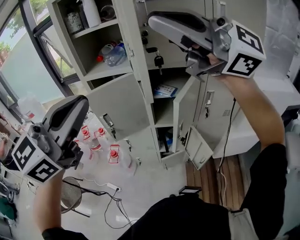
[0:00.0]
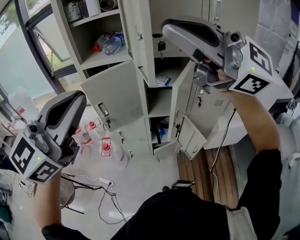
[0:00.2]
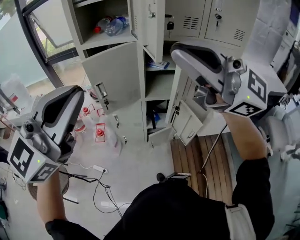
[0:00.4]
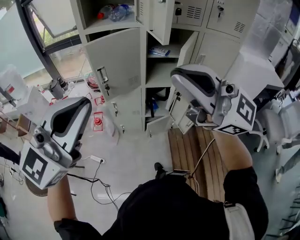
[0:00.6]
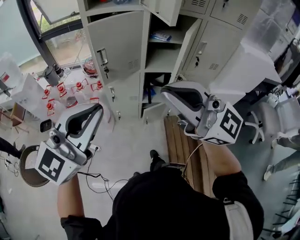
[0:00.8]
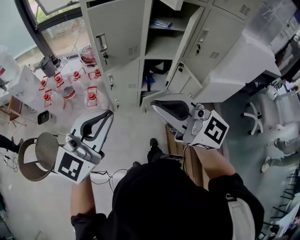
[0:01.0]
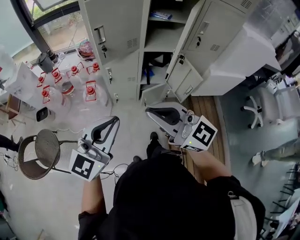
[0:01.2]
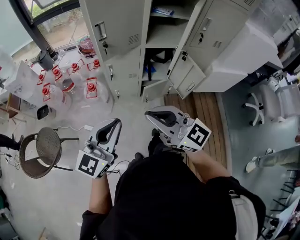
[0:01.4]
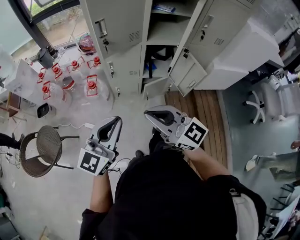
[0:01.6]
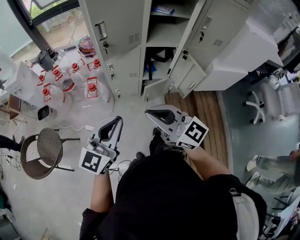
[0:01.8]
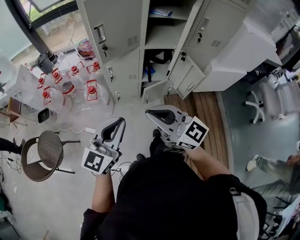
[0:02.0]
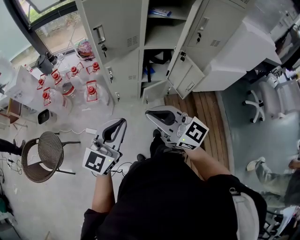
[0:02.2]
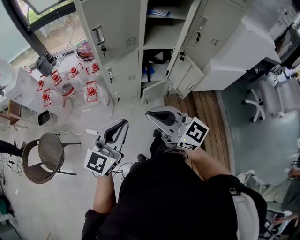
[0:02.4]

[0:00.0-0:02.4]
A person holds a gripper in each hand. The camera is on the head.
0.0 to 1.2 s: The left gripper heads downward and backward, covering approximately 35 cm. The right gripper is displaced downward, to the left and backward by some 50 cm, and rotates about 40 degrees.
1.2 to 2.4 s: Both grippers travel together downward, about 5 cm.

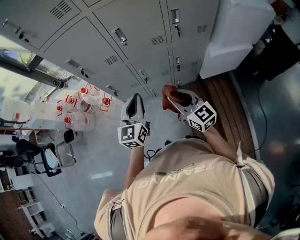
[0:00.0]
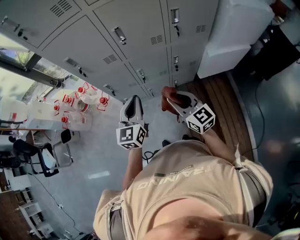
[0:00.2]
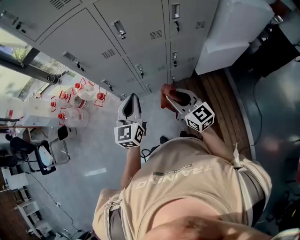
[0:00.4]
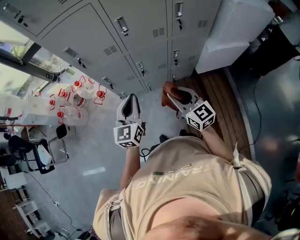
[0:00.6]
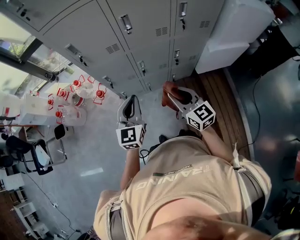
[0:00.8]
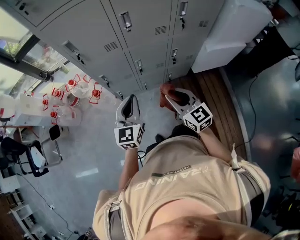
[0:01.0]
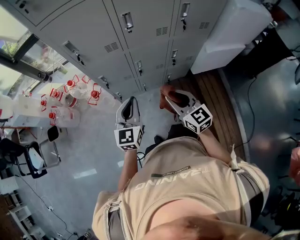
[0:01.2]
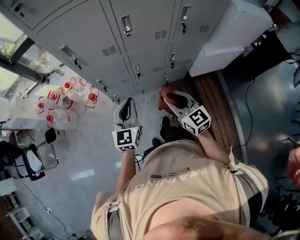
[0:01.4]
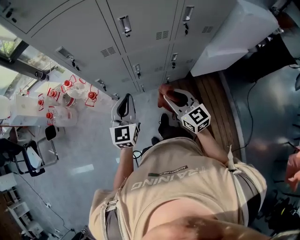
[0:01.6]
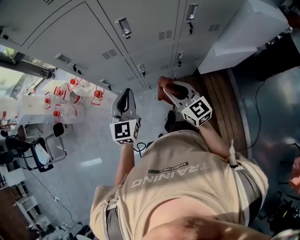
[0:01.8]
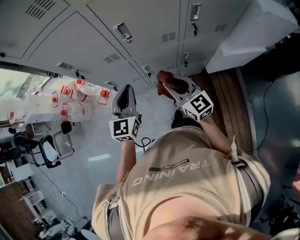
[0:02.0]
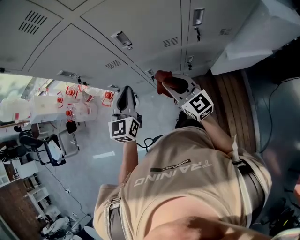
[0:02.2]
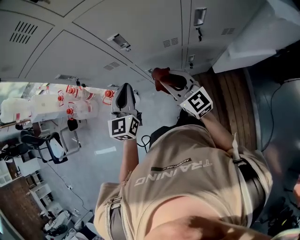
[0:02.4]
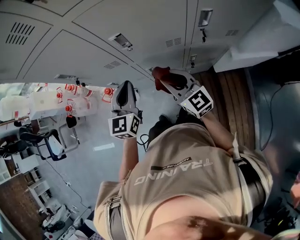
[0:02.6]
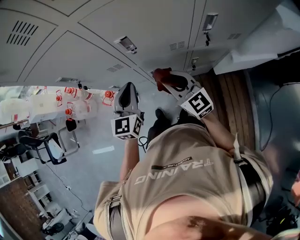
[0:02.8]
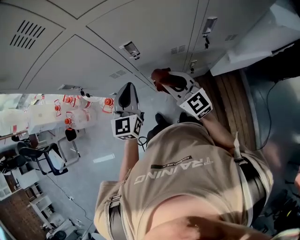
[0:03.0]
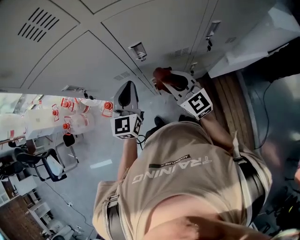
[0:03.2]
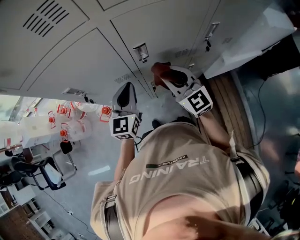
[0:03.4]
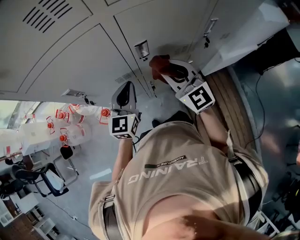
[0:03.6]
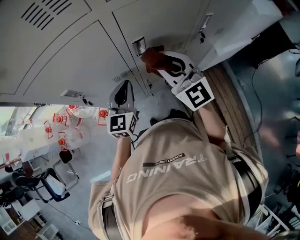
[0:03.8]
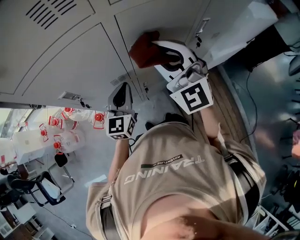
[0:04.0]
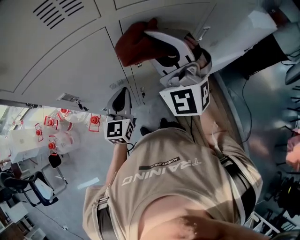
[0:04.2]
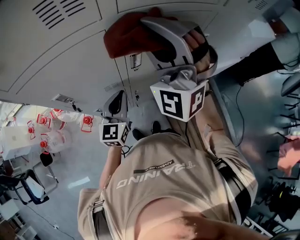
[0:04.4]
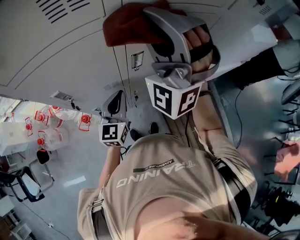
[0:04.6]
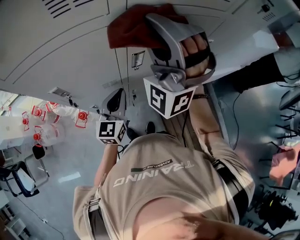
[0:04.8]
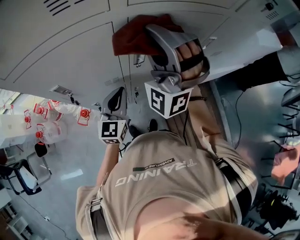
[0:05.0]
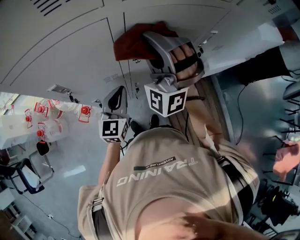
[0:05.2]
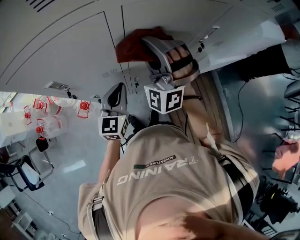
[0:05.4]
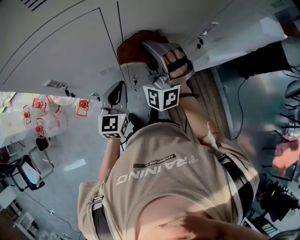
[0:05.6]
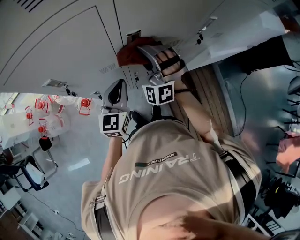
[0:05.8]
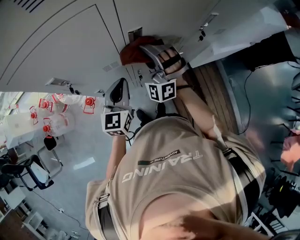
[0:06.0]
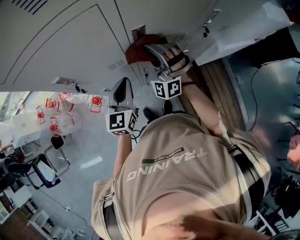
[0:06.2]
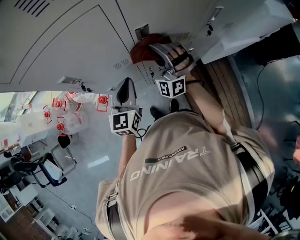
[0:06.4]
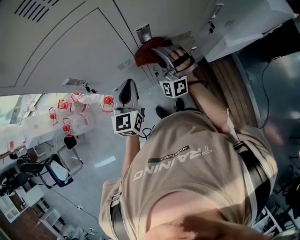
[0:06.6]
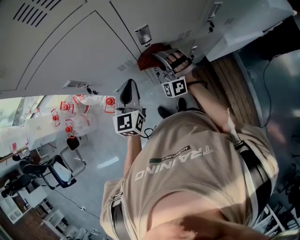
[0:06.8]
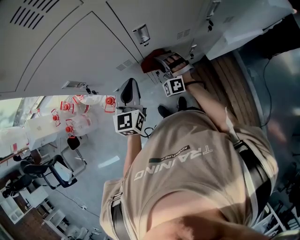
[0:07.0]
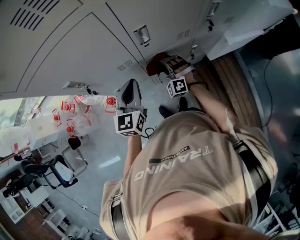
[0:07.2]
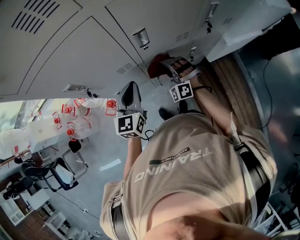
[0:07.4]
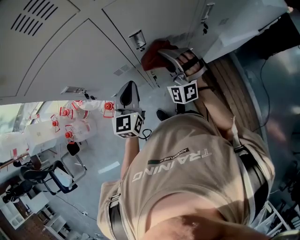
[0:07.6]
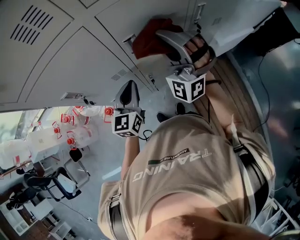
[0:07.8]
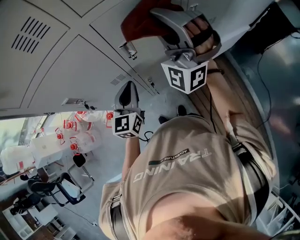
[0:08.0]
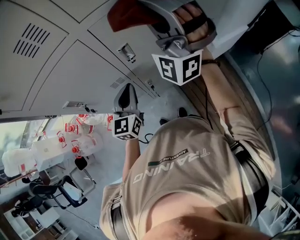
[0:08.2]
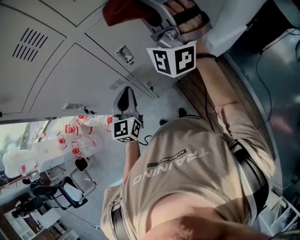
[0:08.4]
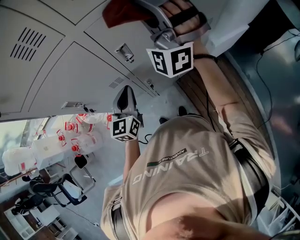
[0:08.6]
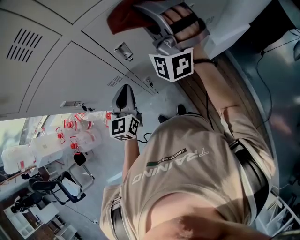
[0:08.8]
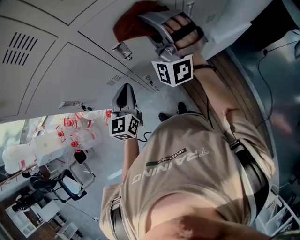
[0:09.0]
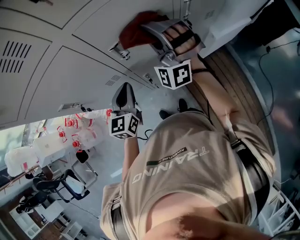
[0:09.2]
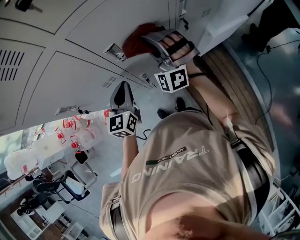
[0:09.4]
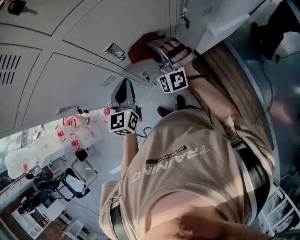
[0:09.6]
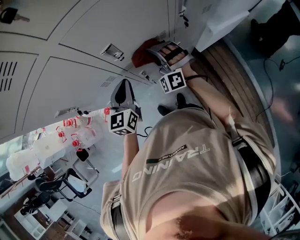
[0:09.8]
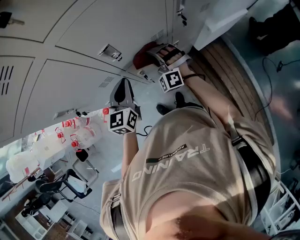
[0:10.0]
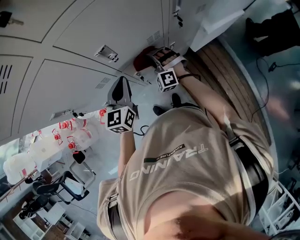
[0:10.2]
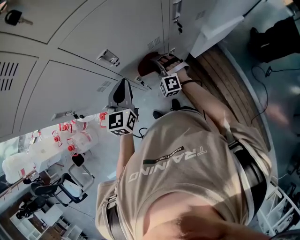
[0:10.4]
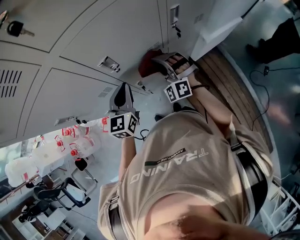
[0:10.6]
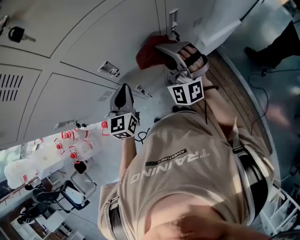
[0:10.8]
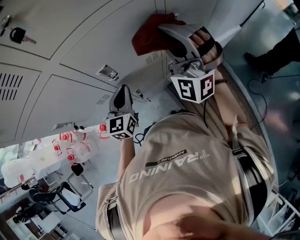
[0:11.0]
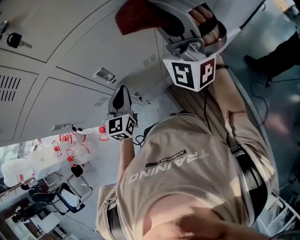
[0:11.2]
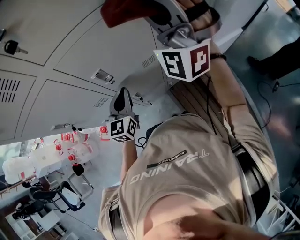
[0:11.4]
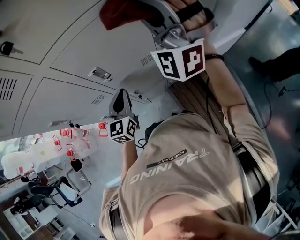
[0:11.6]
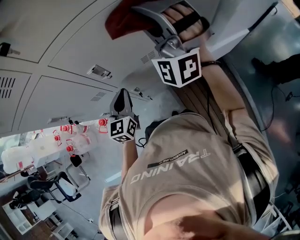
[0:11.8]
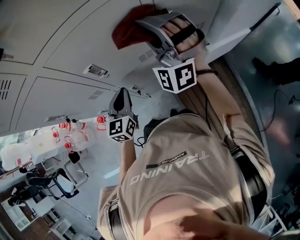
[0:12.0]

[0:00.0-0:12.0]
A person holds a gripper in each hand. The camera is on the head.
0.0 to 1.6 s: The right gripper moves approximately 5 cm; the left gripper is displaced to the left by approximately 5 cm.
1.6 to 3.0 s: Both grippers travel together forward, roughly 20 cm.
3.0 to 4.4 s: The right gripper heads upward, covering approximately 30 cm, and twists about 70 degrees counterclockwise, seen from behind.
4.4 to 6.0 s: The right gripper heads downward, covering some 25 cm.
6.0 to 7.6 s: The right gripper reaches approximately 20 cm downward, then returns.
7.6 to 9.0 s: The right gripper is displaced upward by about 15 cm.
9.0 to 10.4 s: The right gripper moves downward, about 35 cm, and angles its fingers downward, by roughly 40 degrees; the left gripper shifts by some 5 cm.
10.4 to 12.0 s: The right gripper travels upward by some 30 cm, and tilts its fingers approximately 40 degrees upward.

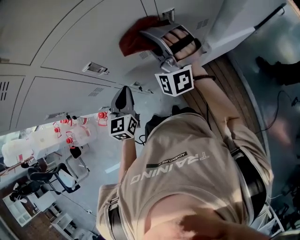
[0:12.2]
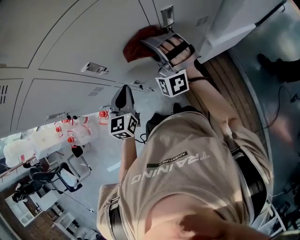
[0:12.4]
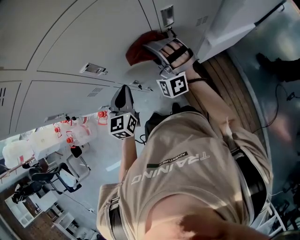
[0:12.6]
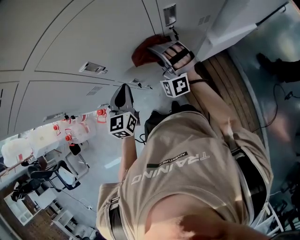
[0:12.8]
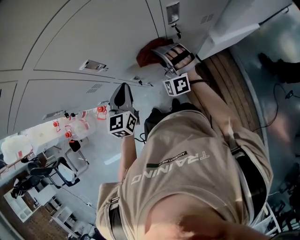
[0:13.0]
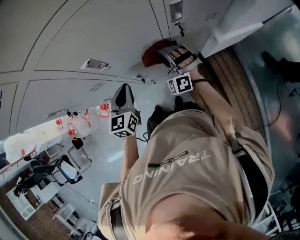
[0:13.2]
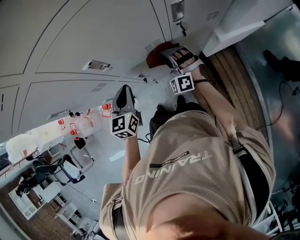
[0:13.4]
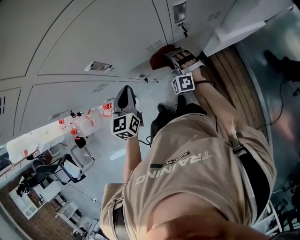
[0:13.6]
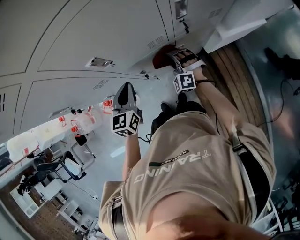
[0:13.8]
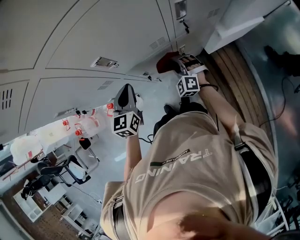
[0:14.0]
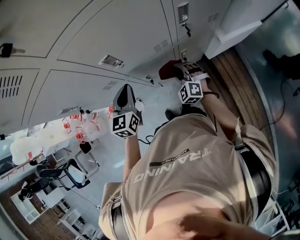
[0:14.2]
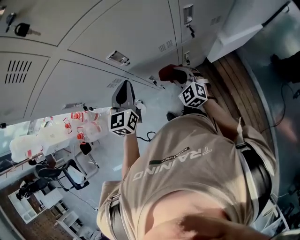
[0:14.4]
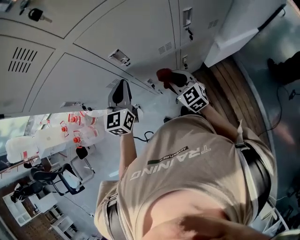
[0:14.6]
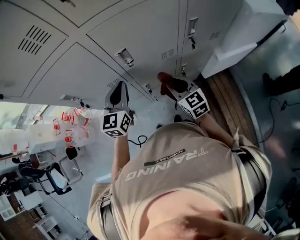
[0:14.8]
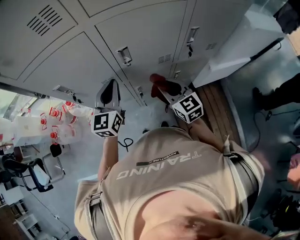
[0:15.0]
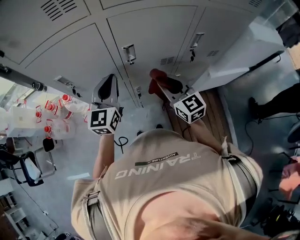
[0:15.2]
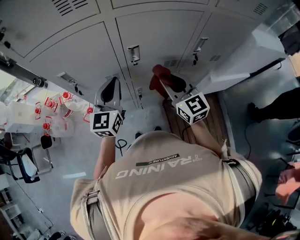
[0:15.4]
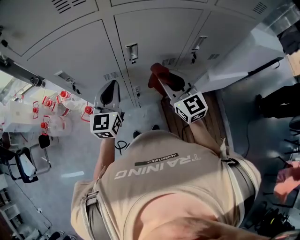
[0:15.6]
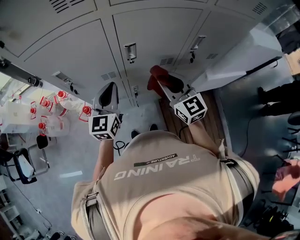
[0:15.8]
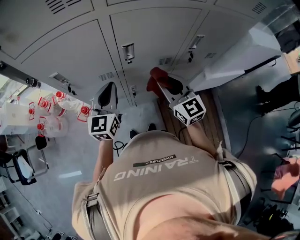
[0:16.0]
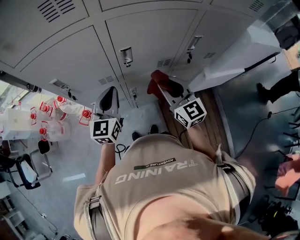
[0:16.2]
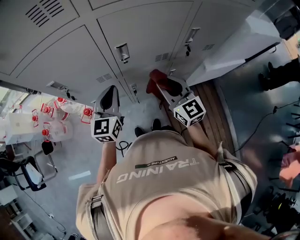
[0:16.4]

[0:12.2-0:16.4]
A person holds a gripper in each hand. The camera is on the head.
12.2 to 13.6 s: The right gripper goes roughly 30 cm downward, and changes its angle by about 30 degrees.
13.6 to 15.0 s: The right gripper is displaced upward and backward by roughly 20 cm, and rolls clockwise, seen from behind, by some 60 degrees. Meanwhile the left gripper shifts roughly 15 cm upward and to the left.
15.0 to 16.4 s: The right gripper is displaced upward by approximately 5 cm.

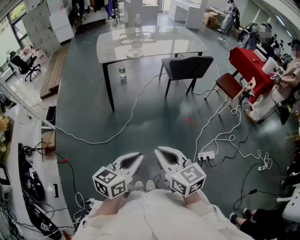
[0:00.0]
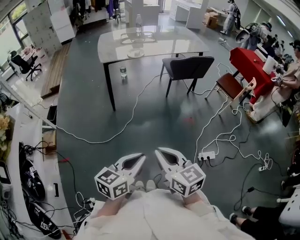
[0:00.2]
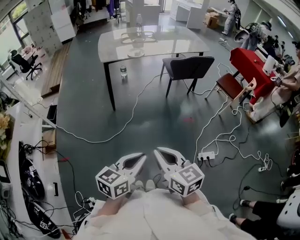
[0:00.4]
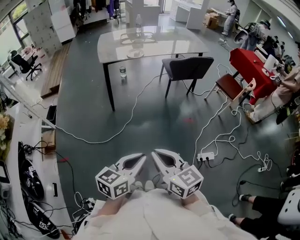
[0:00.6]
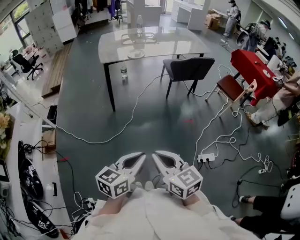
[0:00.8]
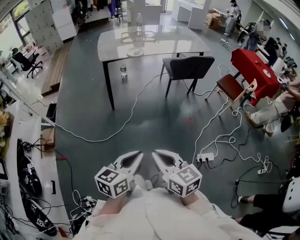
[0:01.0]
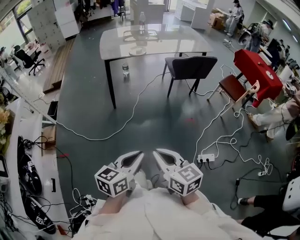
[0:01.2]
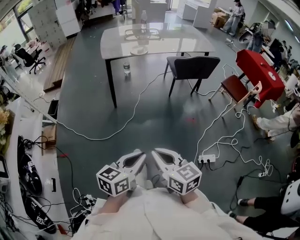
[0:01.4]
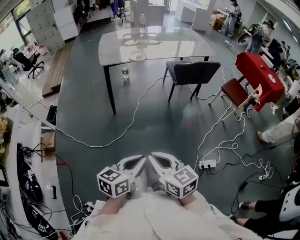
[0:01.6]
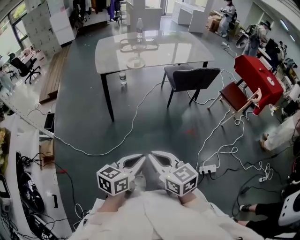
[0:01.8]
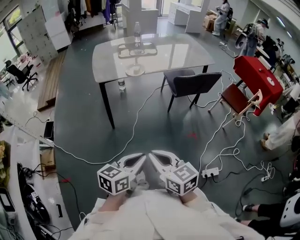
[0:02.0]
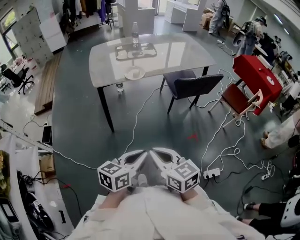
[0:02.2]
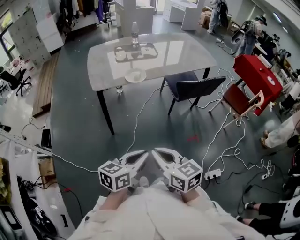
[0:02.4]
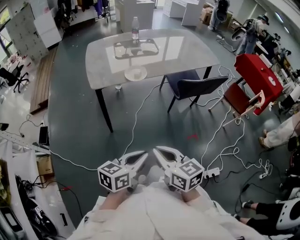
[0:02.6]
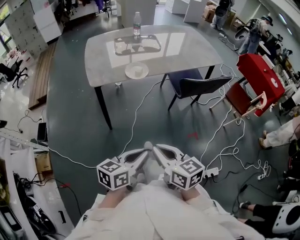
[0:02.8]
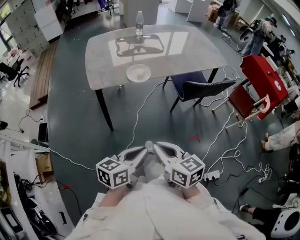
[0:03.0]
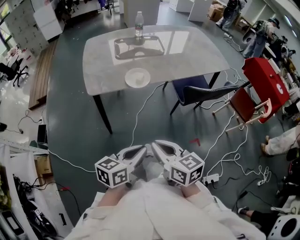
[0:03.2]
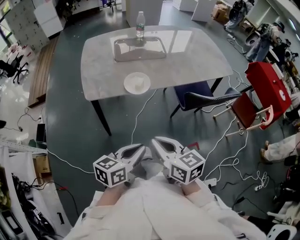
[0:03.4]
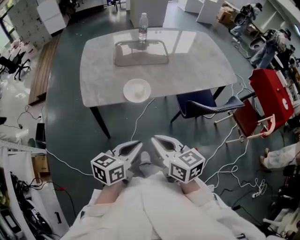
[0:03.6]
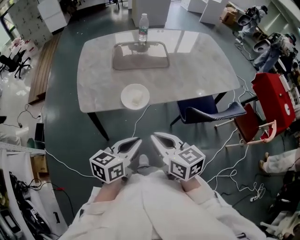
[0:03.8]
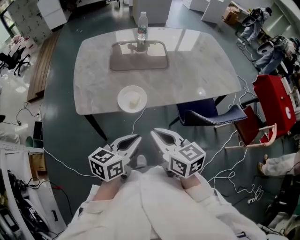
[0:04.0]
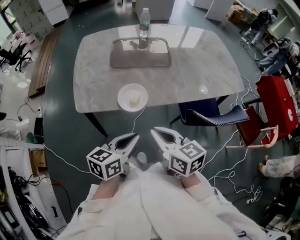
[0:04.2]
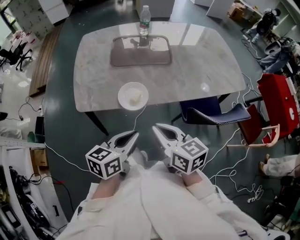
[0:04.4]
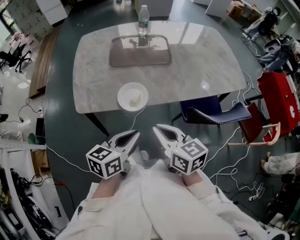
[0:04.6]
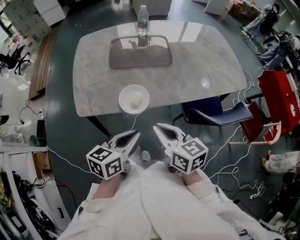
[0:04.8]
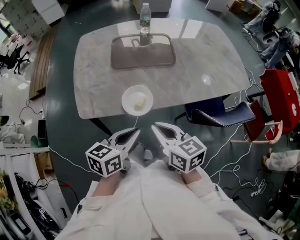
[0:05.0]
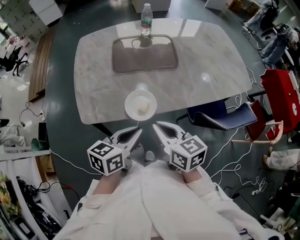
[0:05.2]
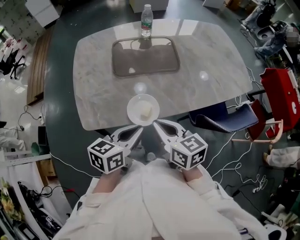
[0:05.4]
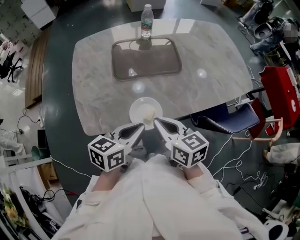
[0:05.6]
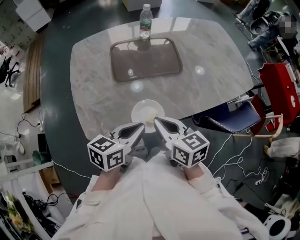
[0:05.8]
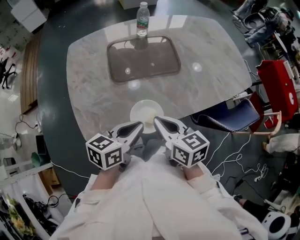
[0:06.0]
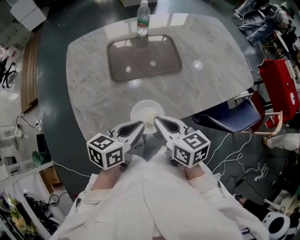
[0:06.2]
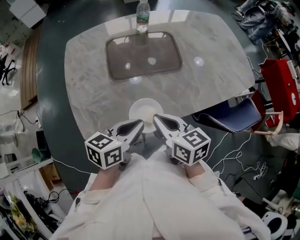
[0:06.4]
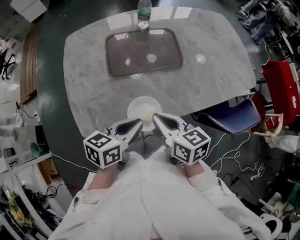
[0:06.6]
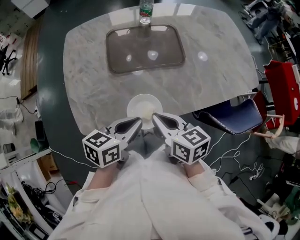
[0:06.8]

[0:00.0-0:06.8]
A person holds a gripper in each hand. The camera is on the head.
0.0 to 1.4 s: The grippers move only a little.
1.4 to 2.8 s: The two grippers go about 35 cm forward.
2.8 to 4.0 s: Both grippers travel together forward, about 30 cm.
4.0 to 5.4 s: Both grippers move forward and to the left, roughly 15 cm.
5.4 to 6.8 s: The grippers both shift forward by approximately 5 cm.
